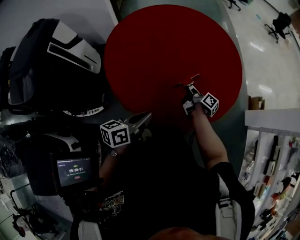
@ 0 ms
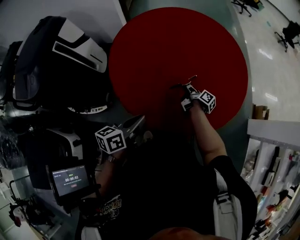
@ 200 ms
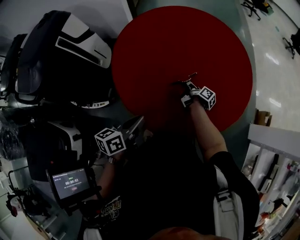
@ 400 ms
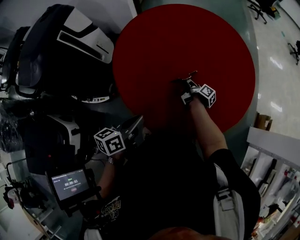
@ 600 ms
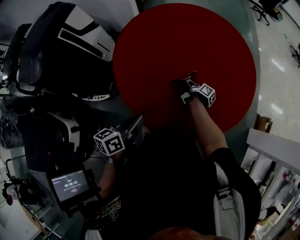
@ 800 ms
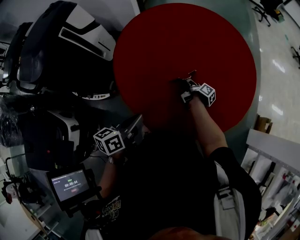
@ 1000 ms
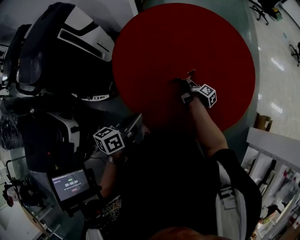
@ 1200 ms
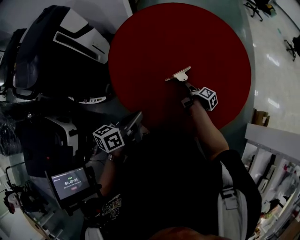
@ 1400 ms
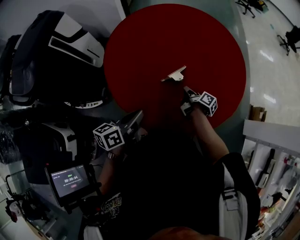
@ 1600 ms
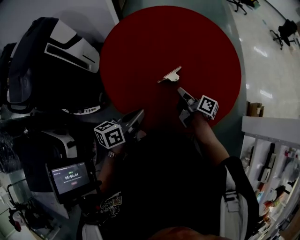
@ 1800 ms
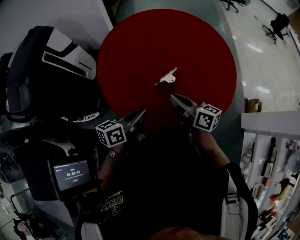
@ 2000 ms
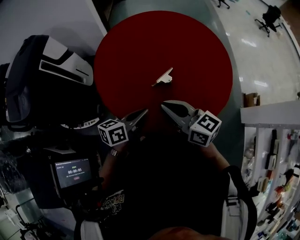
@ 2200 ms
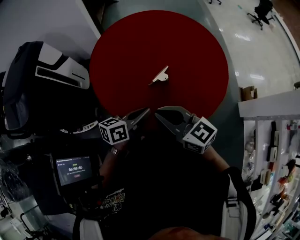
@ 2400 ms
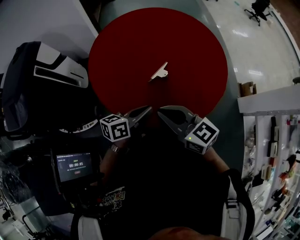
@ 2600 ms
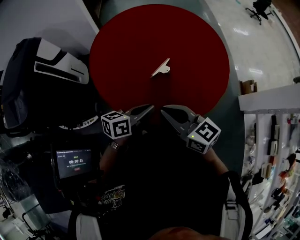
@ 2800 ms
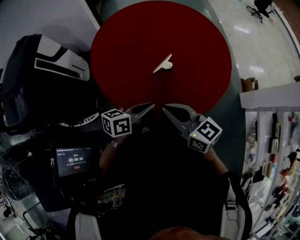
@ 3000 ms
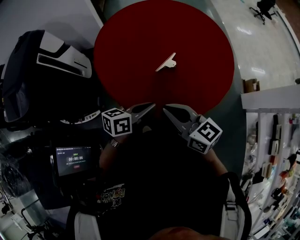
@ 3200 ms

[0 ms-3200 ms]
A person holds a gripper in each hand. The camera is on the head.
0 ms to 1600 ms: The right gripper travels forward and back again, approximately 10 cm each way.
1600 ms to 3200 ms: The right gripper is displaced upward, backward and to the left by some 35 cm, and twists some 70 degrees counterclockwise, seen from behind. The left gripper turns by approximately 30 degrees.

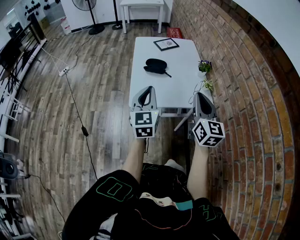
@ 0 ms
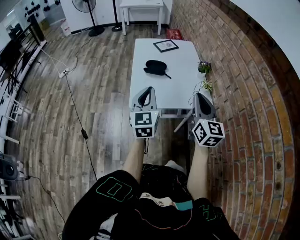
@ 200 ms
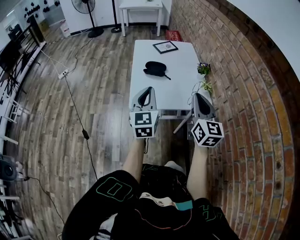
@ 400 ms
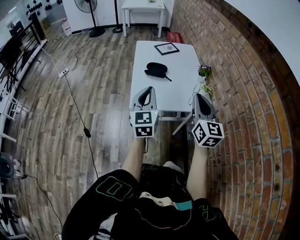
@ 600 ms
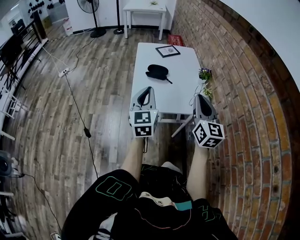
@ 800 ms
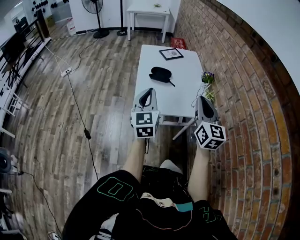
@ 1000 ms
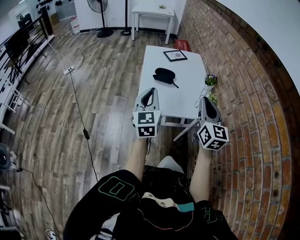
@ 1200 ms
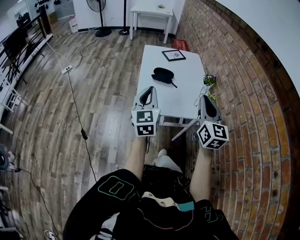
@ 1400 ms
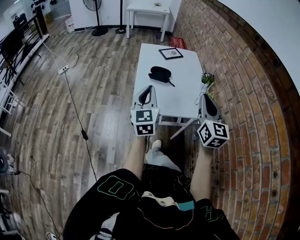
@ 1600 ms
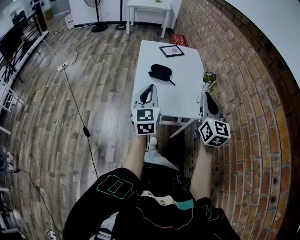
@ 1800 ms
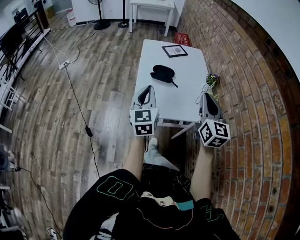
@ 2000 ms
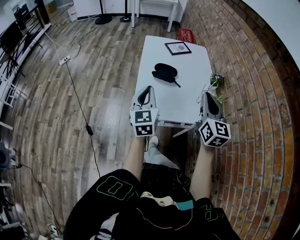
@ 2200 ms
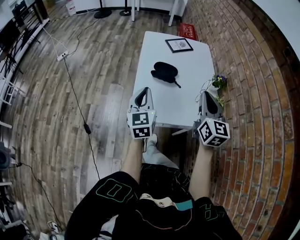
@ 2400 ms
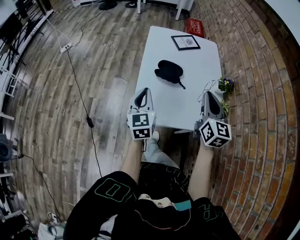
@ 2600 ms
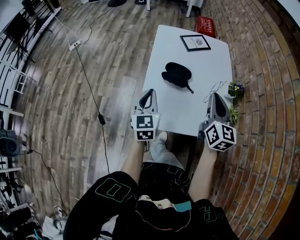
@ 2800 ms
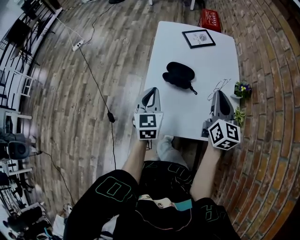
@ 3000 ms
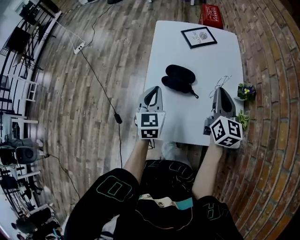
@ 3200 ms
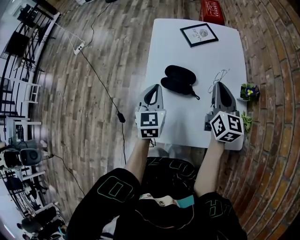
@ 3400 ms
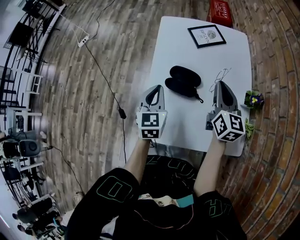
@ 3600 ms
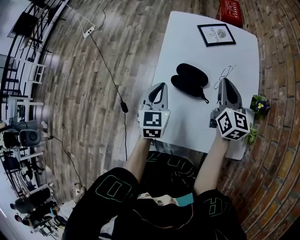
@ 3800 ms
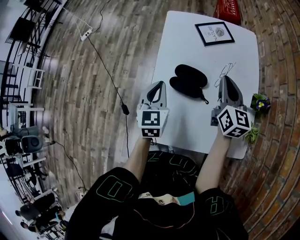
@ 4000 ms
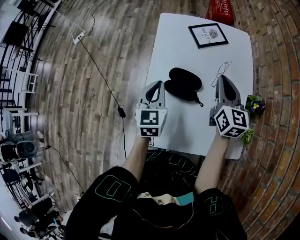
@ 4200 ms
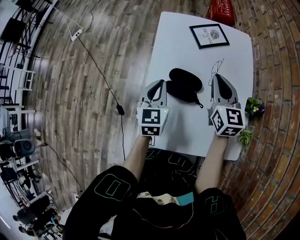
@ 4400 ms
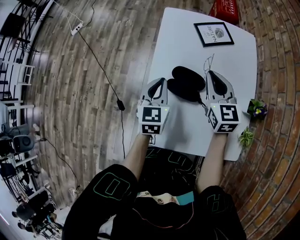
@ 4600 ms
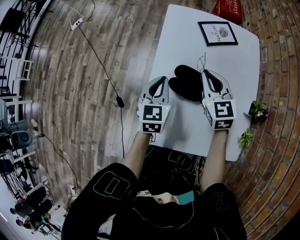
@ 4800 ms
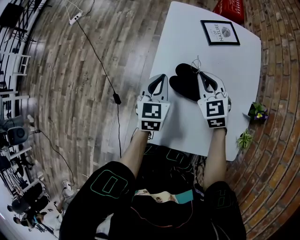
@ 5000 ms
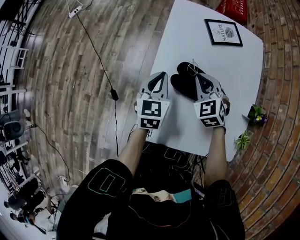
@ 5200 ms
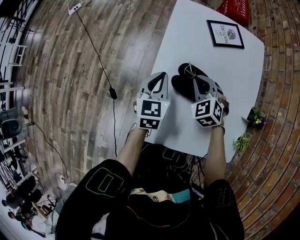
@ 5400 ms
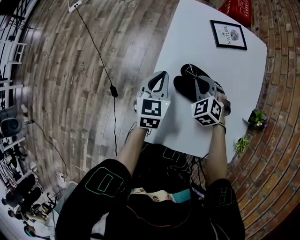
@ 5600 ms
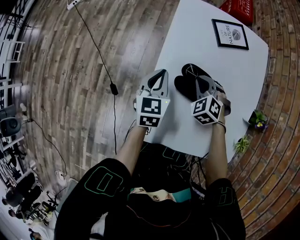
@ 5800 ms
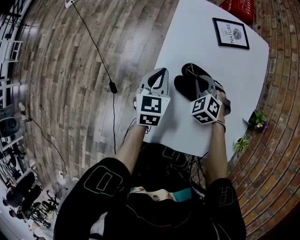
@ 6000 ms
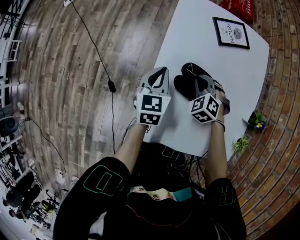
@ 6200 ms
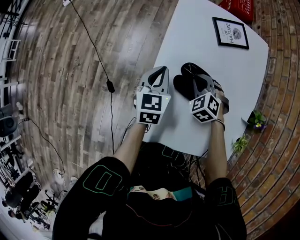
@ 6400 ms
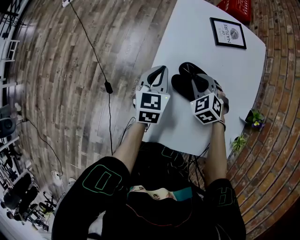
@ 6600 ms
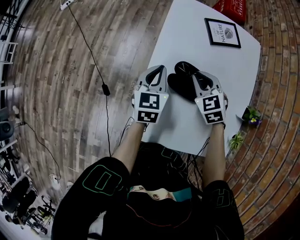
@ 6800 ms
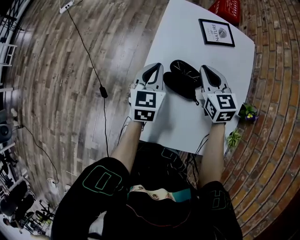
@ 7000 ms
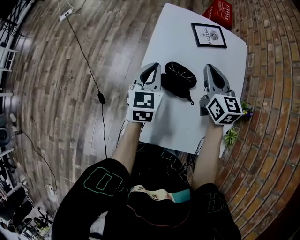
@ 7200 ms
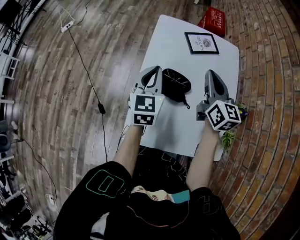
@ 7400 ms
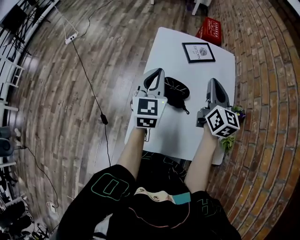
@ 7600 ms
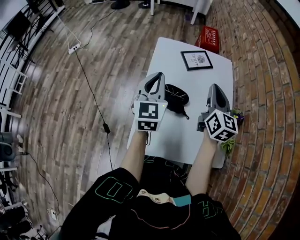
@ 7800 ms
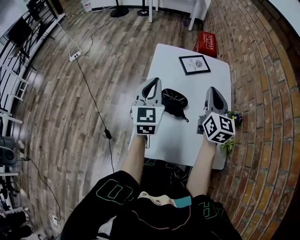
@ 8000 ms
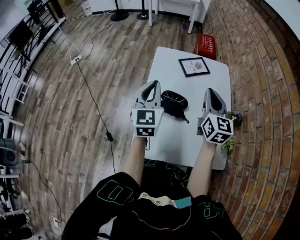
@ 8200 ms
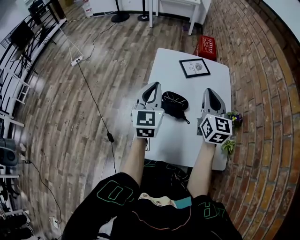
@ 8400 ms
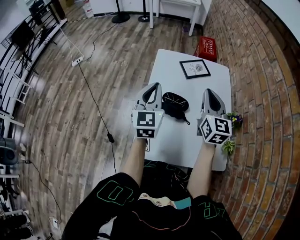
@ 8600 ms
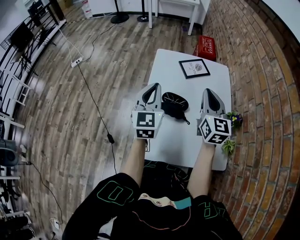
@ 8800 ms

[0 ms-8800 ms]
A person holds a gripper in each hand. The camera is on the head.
0 ms to 1400 ms: The left gripper travels to the left by some 5 cm.
1400 ms to 3000 ms: The right gripper heads forward, covering roughly 30 cm. Meanwhile the left gripper is displaced forward and downward by some 25 cm, and turns by roughly 20 degrees.
3000 ms to 4400 ms: Both grippers move forward, roughly 15 cm.
4400 ms to 5800 ms: The left gripper goes about 10 cm downward and to the left. The right gripper shifts about 20 cm downward and to the left, and twists about 50 degrees counterclockwise, seen from behind.
5800 ms to 7400 ms: The right gripper heads upward, covering about 20 cm, and tilts its fingers approximately 40 degrees upward; the left gripper goes some 10 cm upward.
7400 ms to 8800 ms: The right gripper goes some 10 cm upward and backward. Meanwhile the left gripper shifts some 10 cm upward.

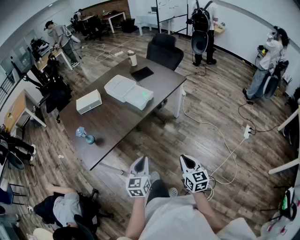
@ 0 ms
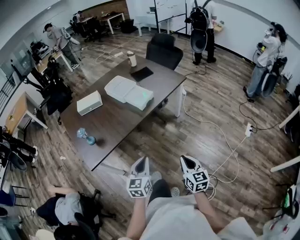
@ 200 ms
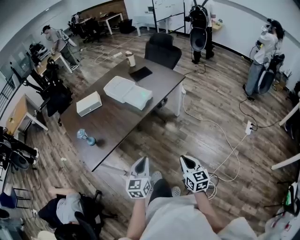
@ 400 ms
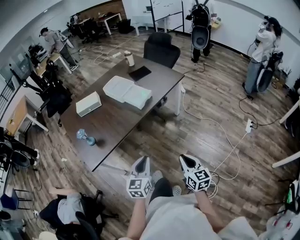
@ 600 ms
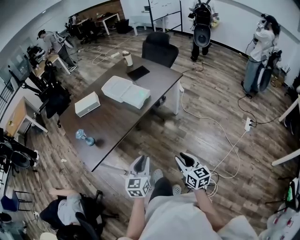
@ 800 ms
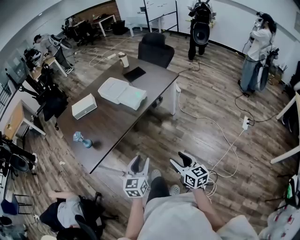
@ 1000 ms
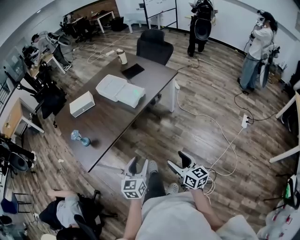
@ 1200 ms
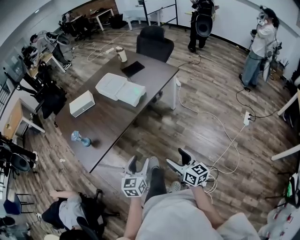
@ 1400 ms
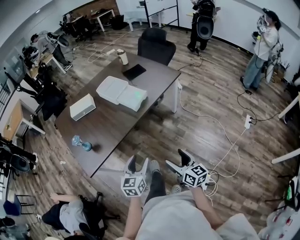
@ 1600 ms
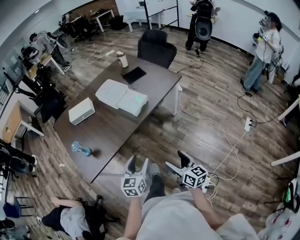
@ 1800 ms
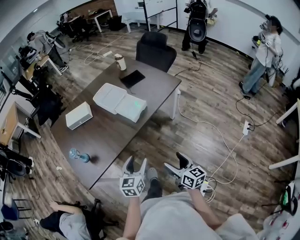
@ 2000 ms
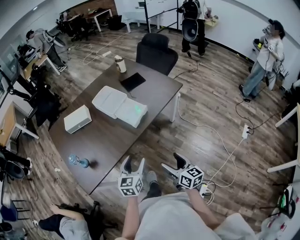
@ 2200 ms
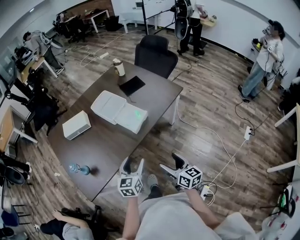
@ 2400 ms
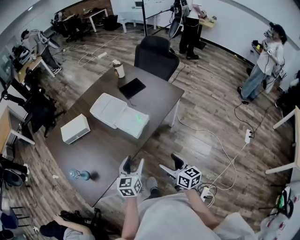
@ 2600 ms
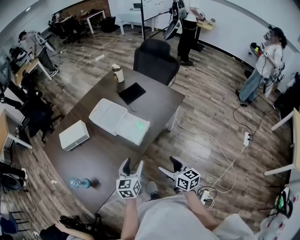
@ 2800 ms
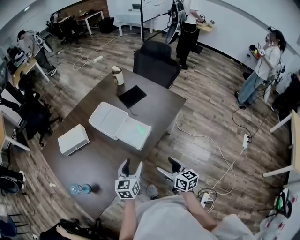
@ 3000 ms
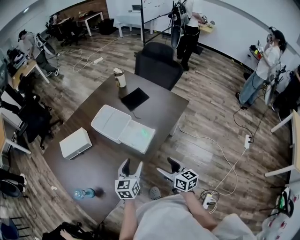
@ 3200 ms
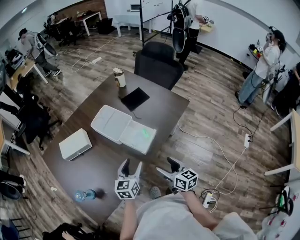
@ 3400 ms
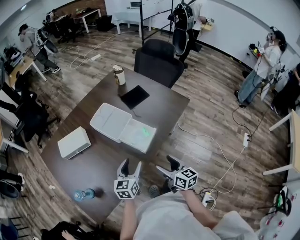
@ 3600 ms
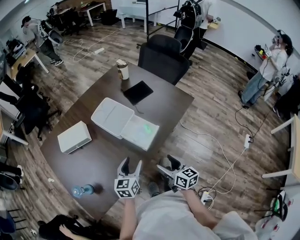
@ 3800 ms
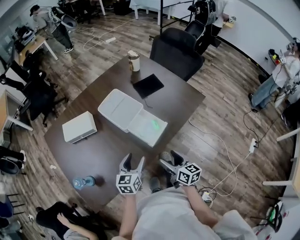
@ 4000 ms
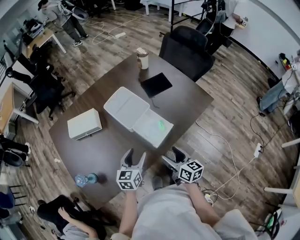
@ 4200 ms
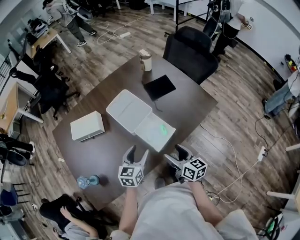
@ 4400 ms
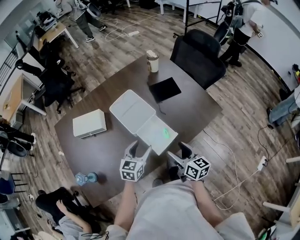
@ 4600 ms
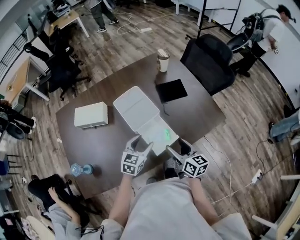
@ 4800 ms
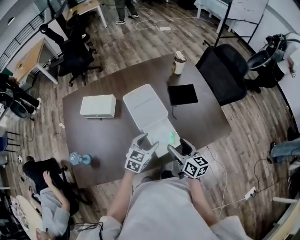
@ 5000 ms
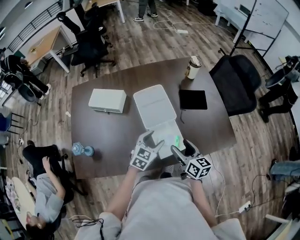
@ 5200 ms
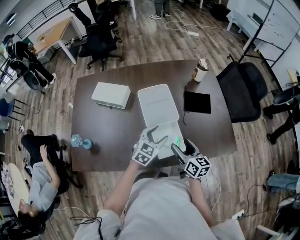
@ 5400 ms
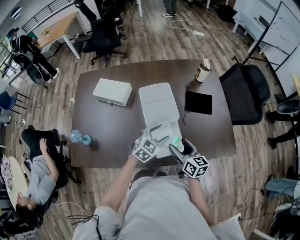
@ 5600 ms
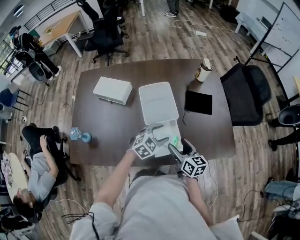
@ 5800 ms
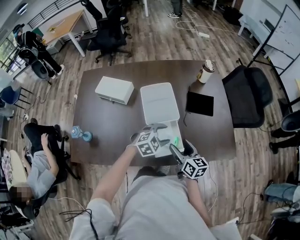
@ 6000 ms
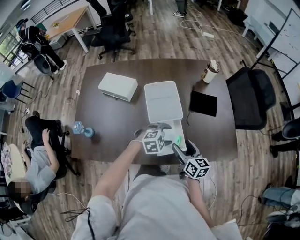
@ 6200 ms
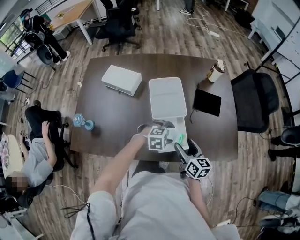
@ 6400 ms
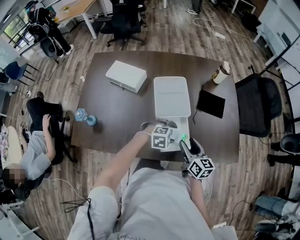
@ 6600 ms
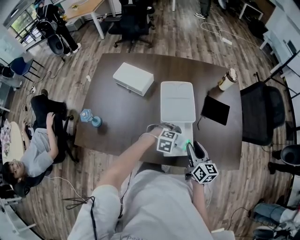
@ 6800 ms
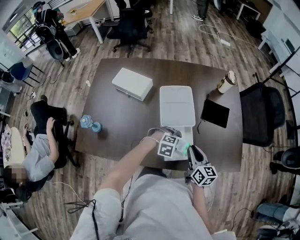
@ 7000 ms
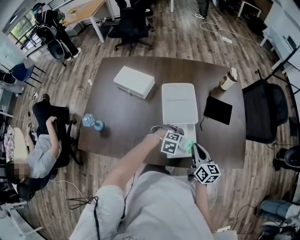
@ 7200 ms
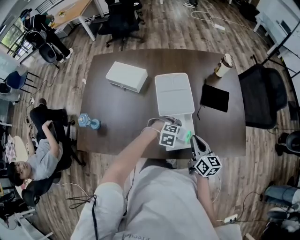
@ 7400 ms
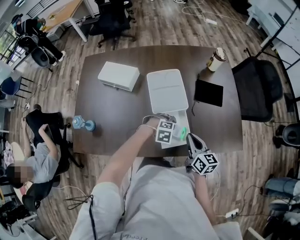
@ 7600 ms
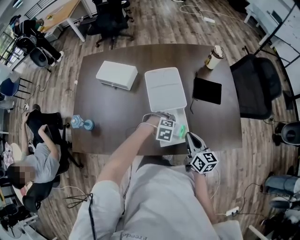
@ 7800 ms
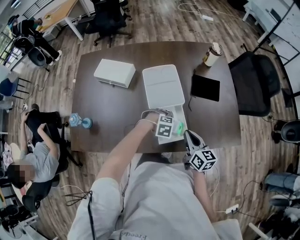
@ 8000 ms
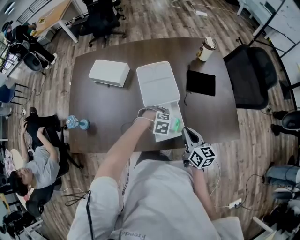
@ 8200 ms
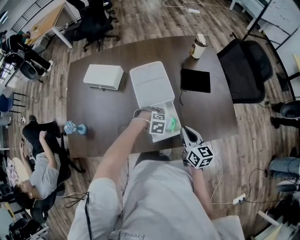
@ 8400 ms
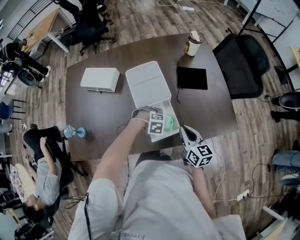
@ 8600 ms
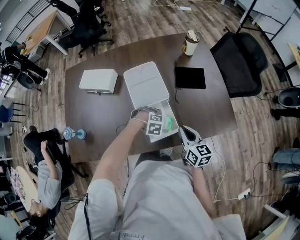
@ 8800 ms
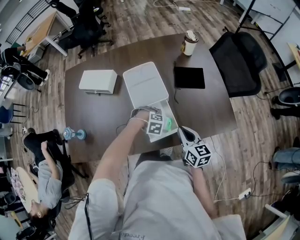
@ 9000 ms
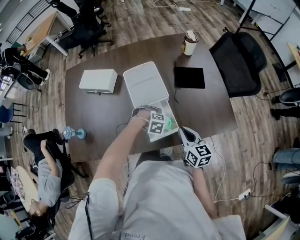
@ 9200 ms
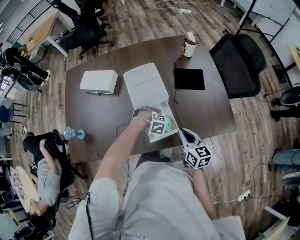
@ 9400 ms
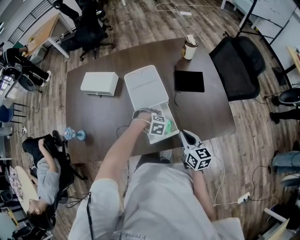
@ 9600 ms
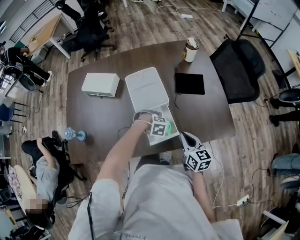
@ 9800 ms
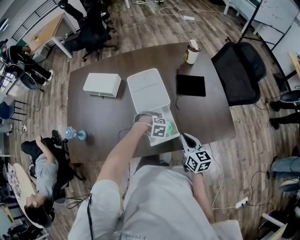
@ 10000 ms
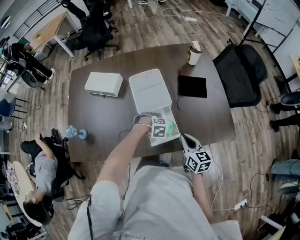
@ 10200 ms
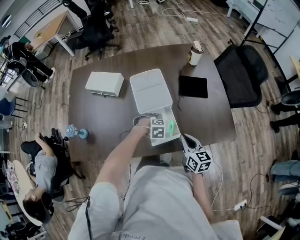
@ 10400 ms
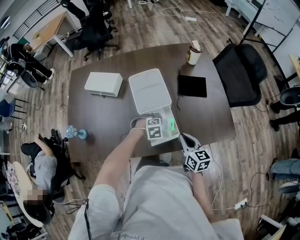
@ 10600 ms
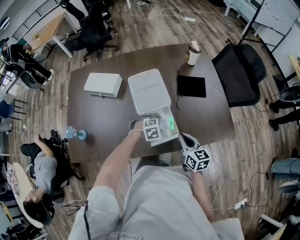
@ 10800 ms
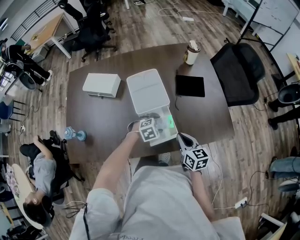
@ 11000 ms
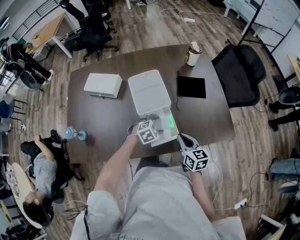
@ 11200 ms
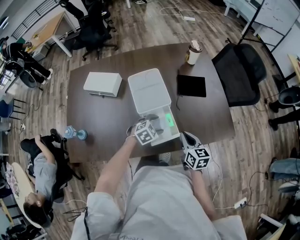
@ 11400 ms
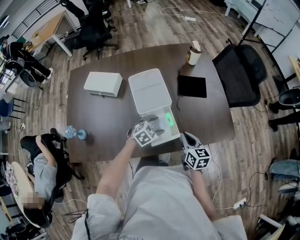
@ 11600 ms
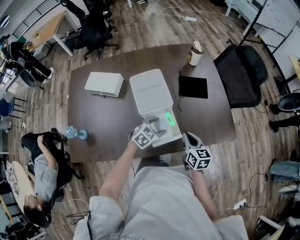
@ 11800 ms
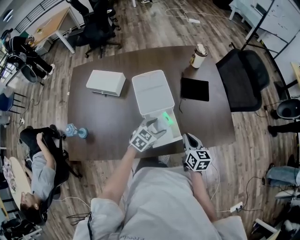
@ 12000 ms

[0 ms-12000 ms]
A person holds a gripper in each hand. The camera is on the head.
0 ms to 1600 ms: The left gripper opens up. The right gripper changes its angle by roughly 20 degrees, and opens.
1600 ms to 3000 ms: Both grippers travel together forward, roughly 30 cm.
3000 ms to 4400 ms: Both grippers travel together forward, approximately 15 cm.
4400 ms to 6000 ms: The left gripper goes roughly 15 cm to the right, forward and downward, and changes its angle by about 40 degrees. The right gripper moves forward, about 15 cm, and turns by about 20 degrees.
6000 ms to 7600 ms: The left gripper moves downward, approximately 10 cm, and turns by roughly 30 degrees; the right gripper closes up.
7600 ms to 9000 ms: There are only small adjustments of the grippers.
9000 ms to 10400 ms: There are only small adjustments of the grippers.
10400 ms to 12000 ms: The left gripper travels upward by approximately 10 cm, and points its fingers some 40 degrees further upward.
